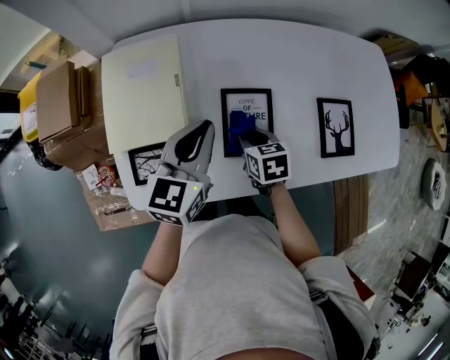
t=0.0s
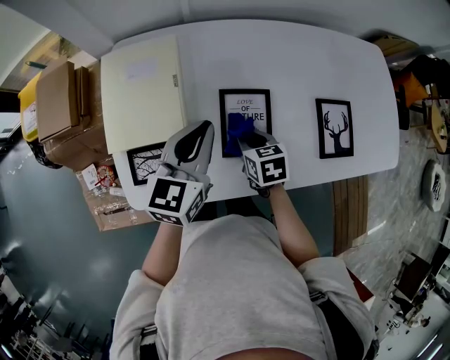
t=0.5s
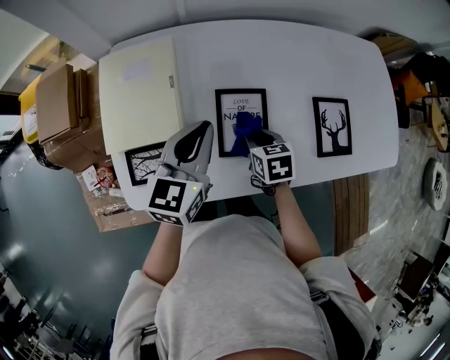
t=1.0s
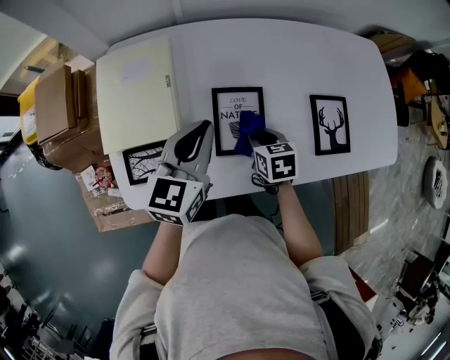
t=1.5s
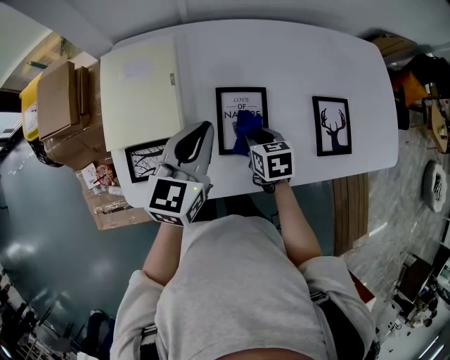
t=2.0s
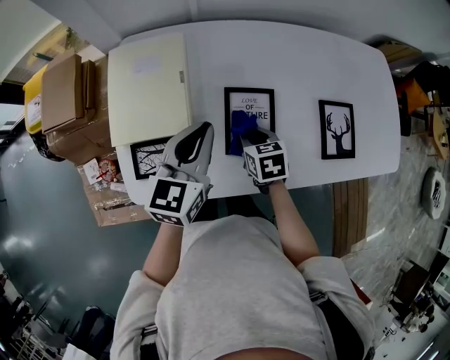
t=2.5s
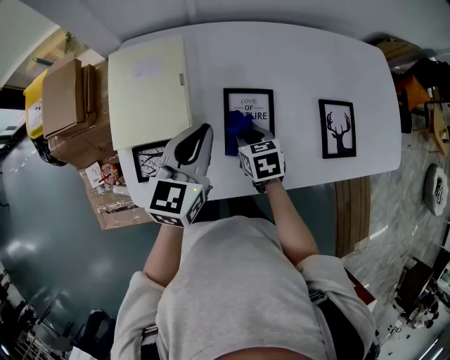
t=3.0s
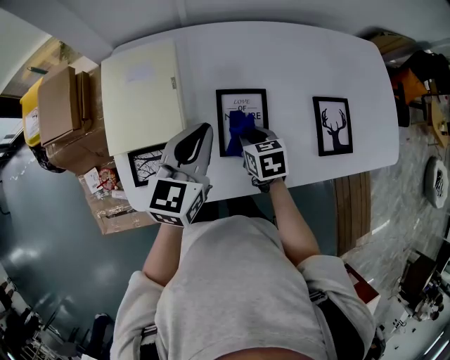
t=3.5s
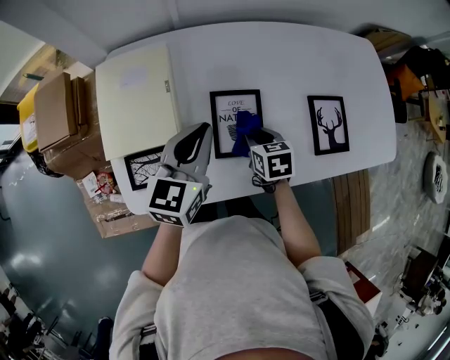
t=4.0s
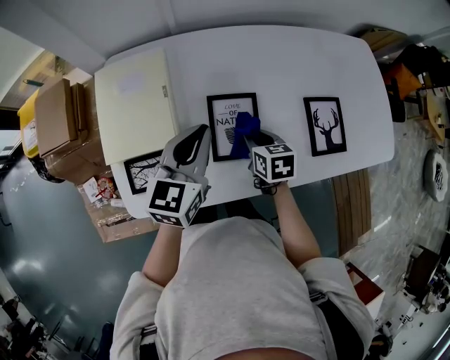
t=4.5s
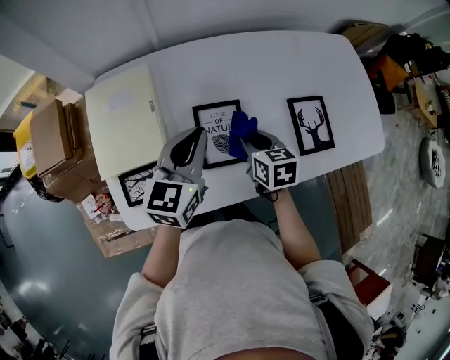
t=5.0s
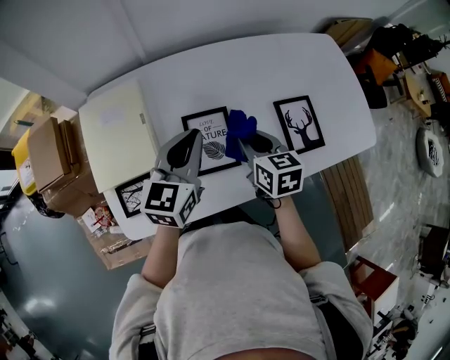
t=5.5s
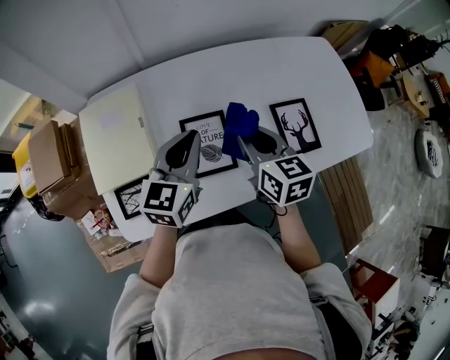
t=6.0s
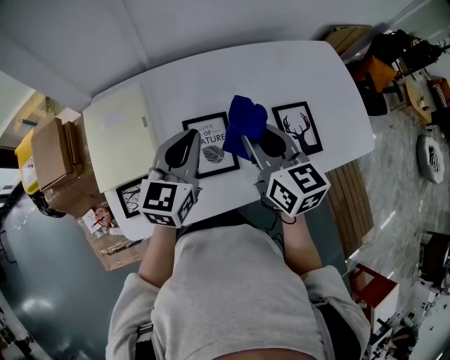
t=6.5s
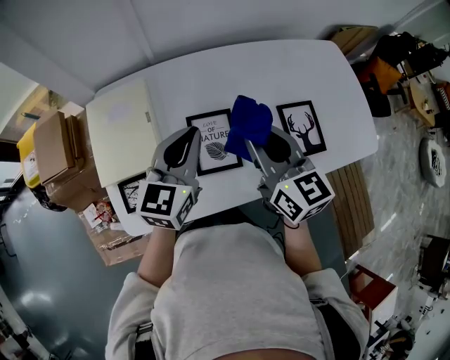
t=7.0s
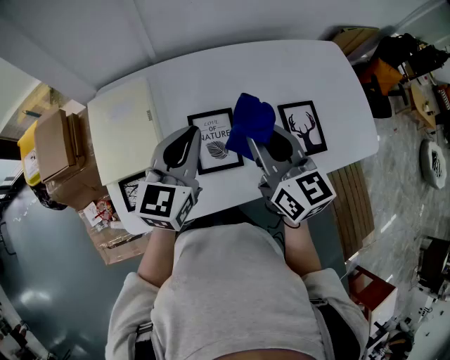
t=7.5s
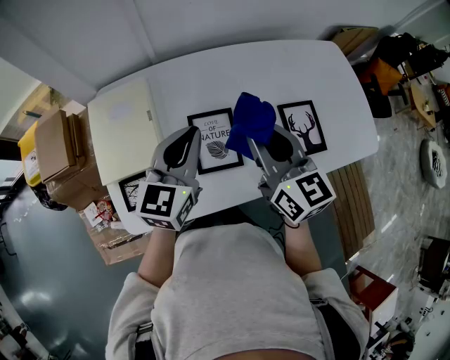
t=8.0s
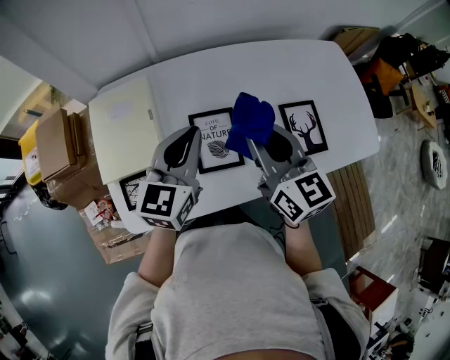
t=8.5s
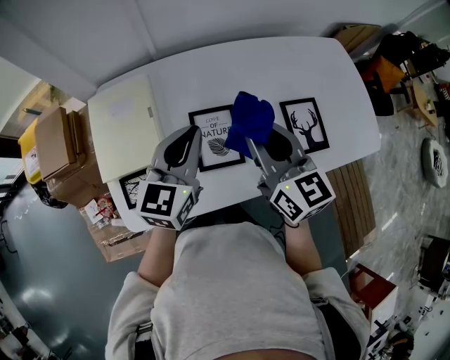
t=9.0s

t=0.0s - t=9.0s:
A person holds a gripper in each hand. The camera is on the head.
t=0.0s - t=4.5s: The grippers move only a little.
t=4.5s - t=7.0s: The right gripper shifts approximately 25 cm upward, and tips its fingers upward by about 40 degrees. Meanwhile the left gripper goes some 5 cm upward.
t=7.0s - t=9.0s: The two grippers keep their place.

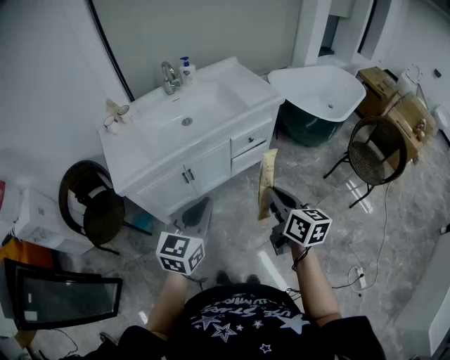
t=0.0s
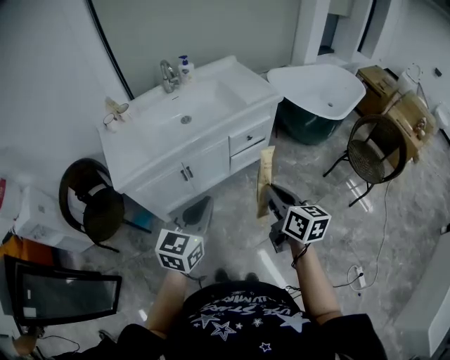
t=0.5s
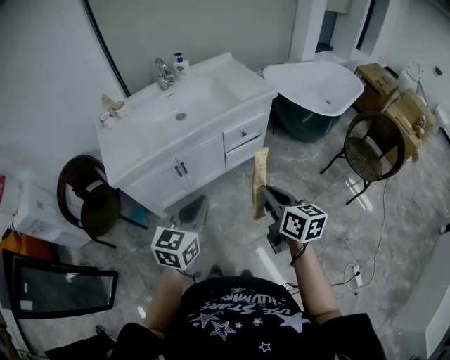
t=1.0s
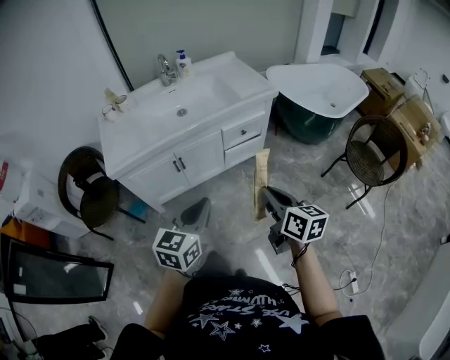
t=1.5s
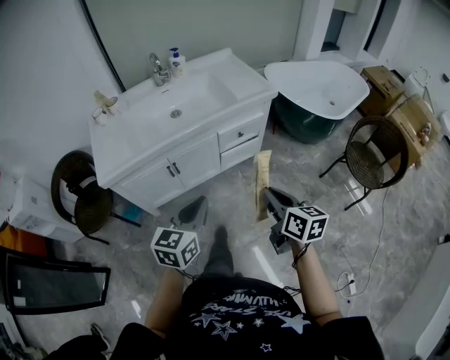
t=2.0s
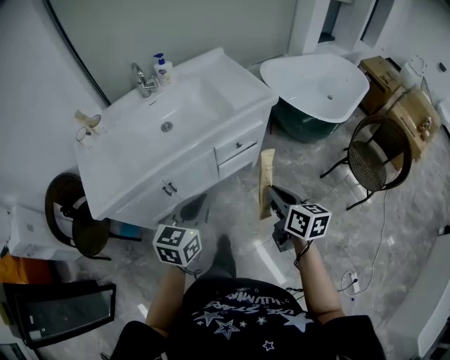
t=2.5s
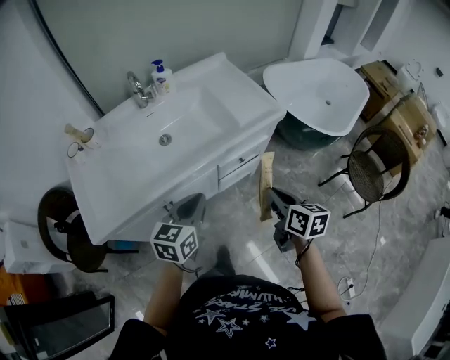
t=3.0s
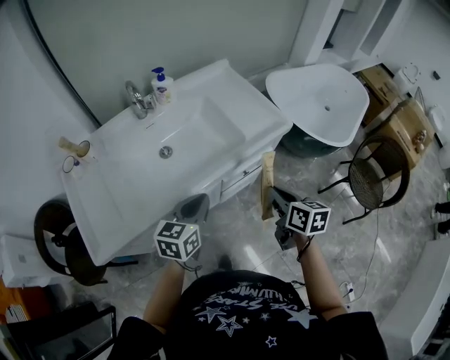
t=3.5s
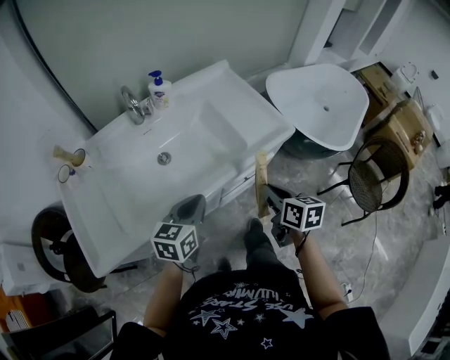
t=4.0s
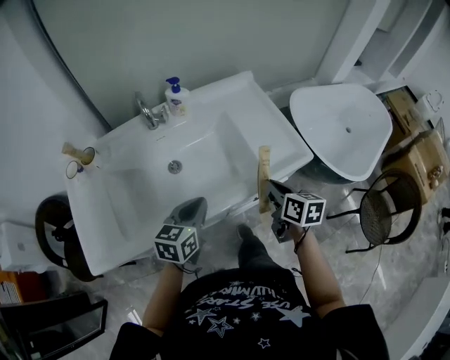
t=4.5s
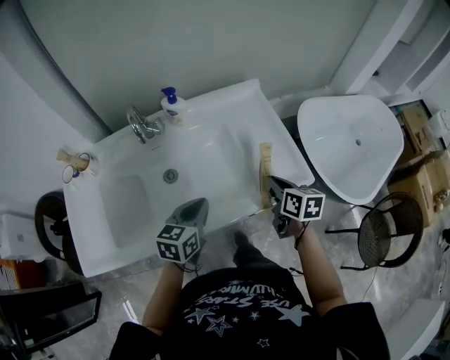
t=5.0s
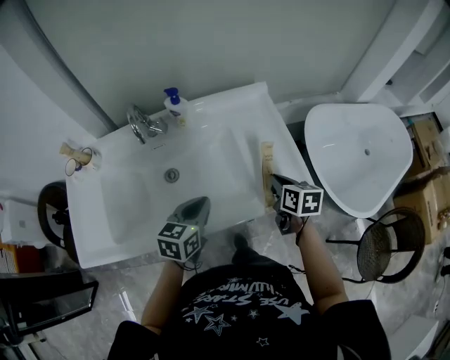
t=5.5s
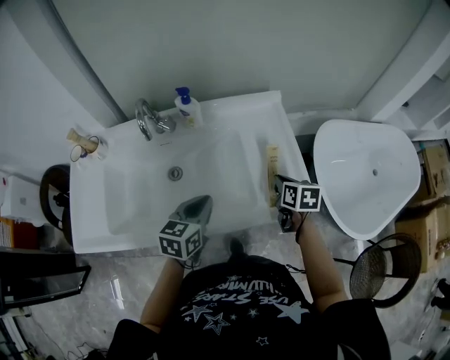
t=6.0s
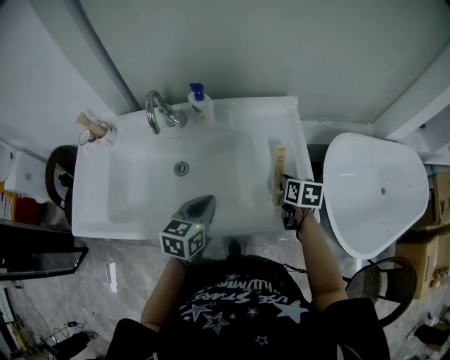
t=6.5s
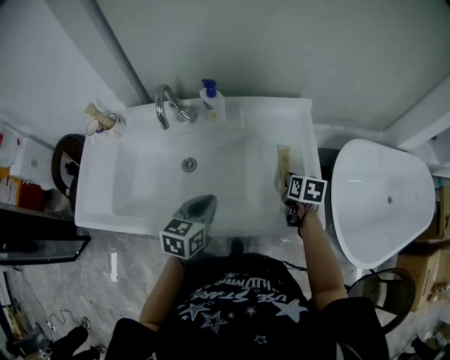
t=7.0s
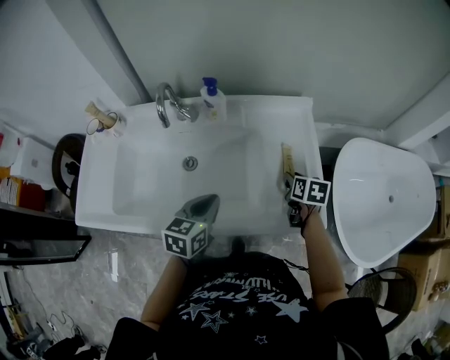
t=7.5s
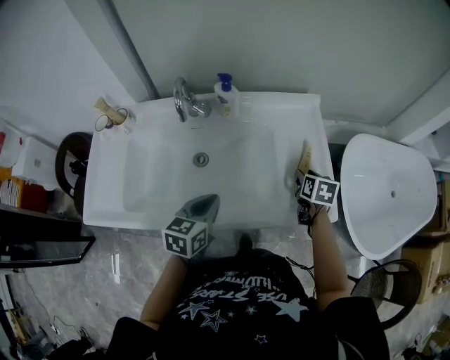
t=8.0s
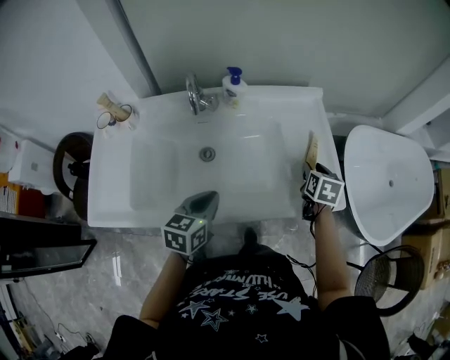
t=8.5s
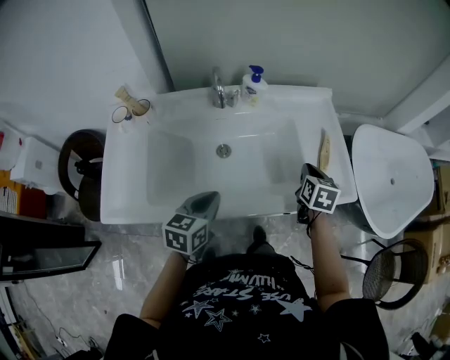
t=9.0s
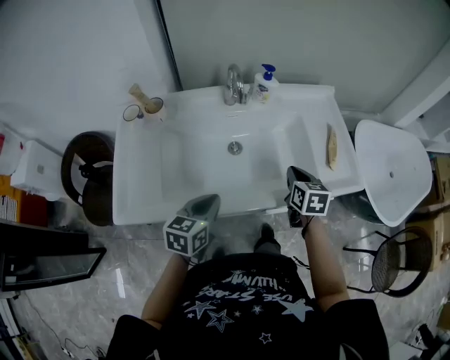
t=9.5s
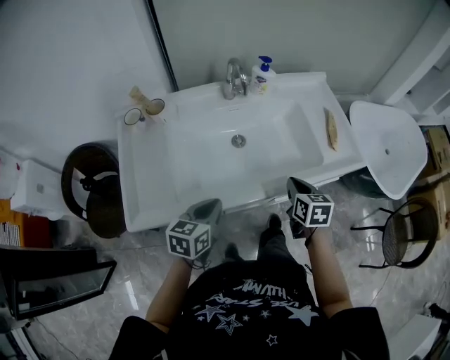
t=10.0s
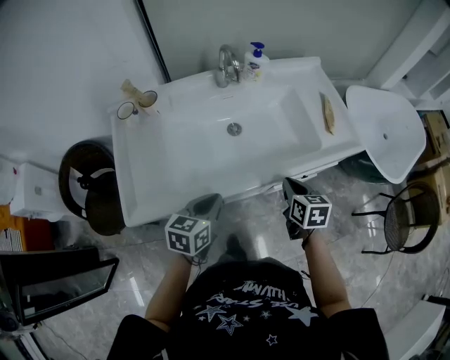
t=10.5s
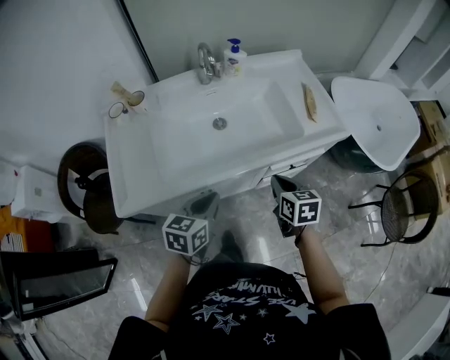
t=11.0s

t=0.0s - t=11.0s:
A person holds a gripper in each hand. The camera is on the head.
t=0.0s - t=2.0s: The left gripper heads to the right and downward, covering roughly 10 cm. The right gripper shifts some 5 cm to the right.
t=2.0s - t=3.5s: The two grippers go roughly 30 cm forward.
t=3.5s - t=5.5s: The left gripper moves forward, approximately 20 cm. The right gripper travels forward by about 30 cm.
t=5.5s - t=7.5s: The right gripper is displaced forward and downward by roughly 10 cm, and opens.
t=7.5s - t=9.0s: The right gripper shifts about 15 cm backward, to the left and upward, and closes up. Meanwhile the left gripper goes about 15 cm to the left and backward.
t=9.0s - t=11.0s: The left gripper is displaced backward by approximately 15 cm, while the right gripper shifts roughly 25 cm backward.

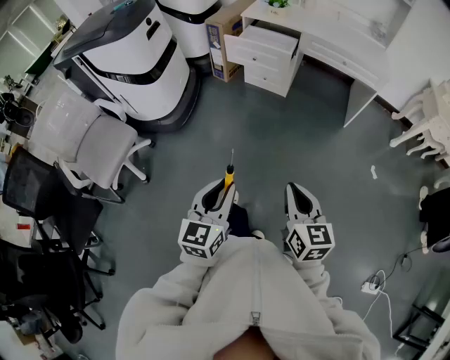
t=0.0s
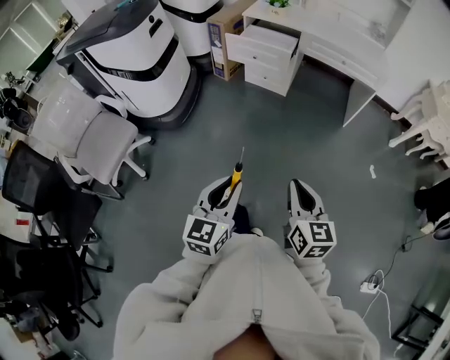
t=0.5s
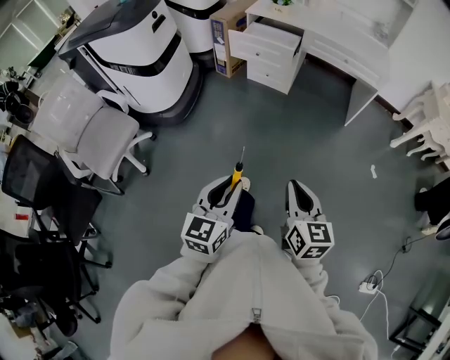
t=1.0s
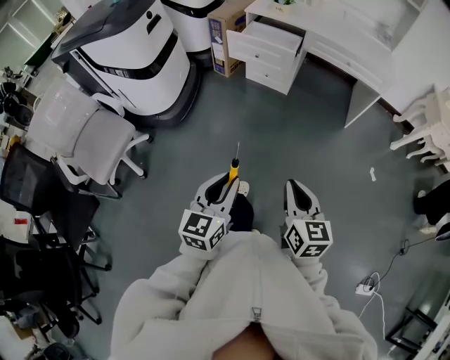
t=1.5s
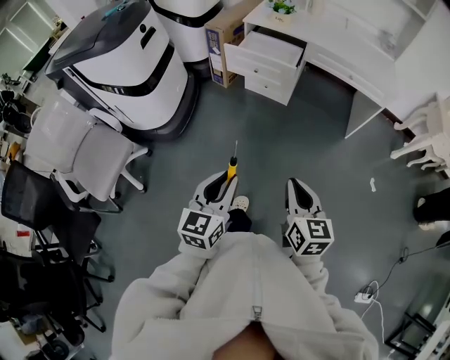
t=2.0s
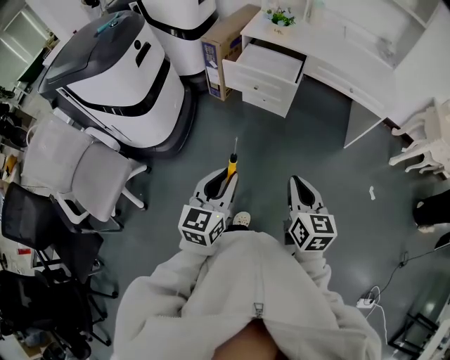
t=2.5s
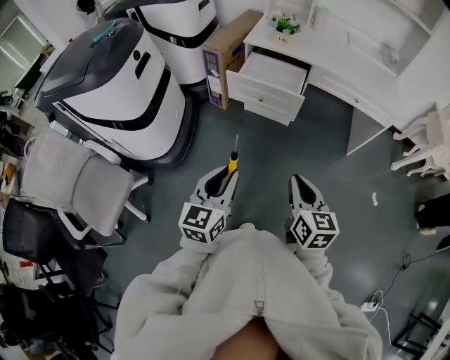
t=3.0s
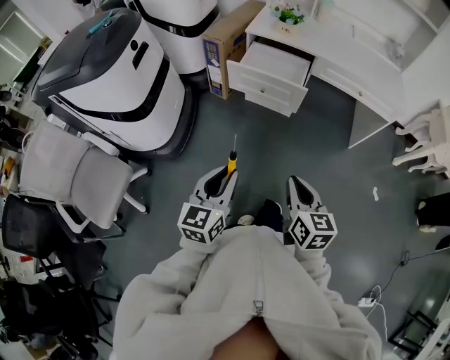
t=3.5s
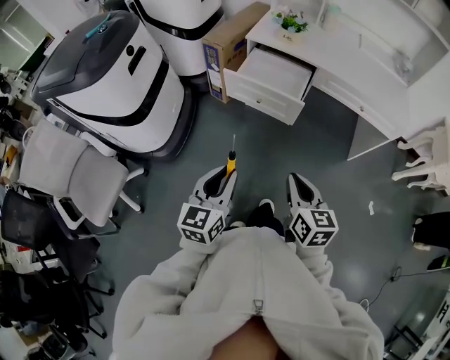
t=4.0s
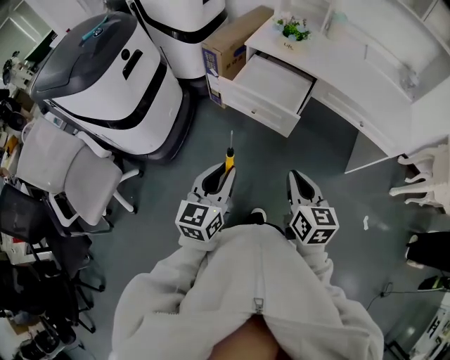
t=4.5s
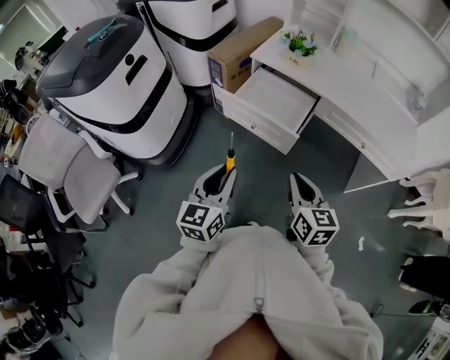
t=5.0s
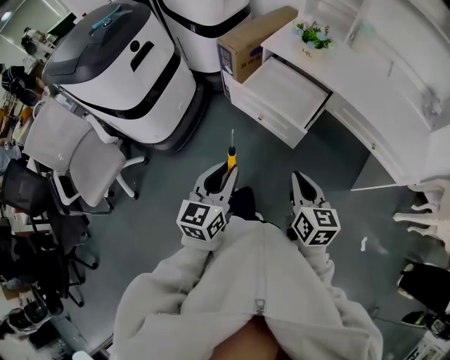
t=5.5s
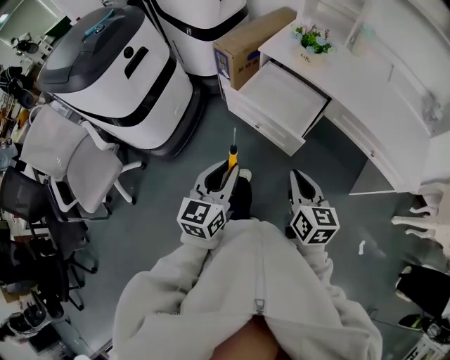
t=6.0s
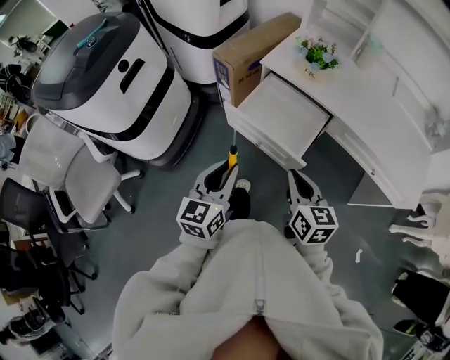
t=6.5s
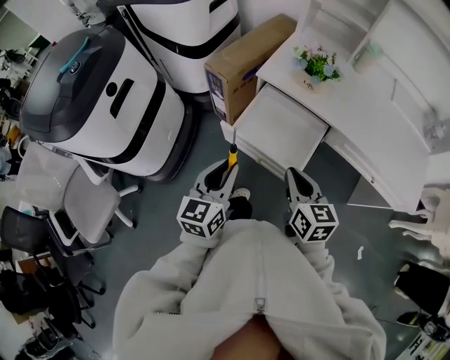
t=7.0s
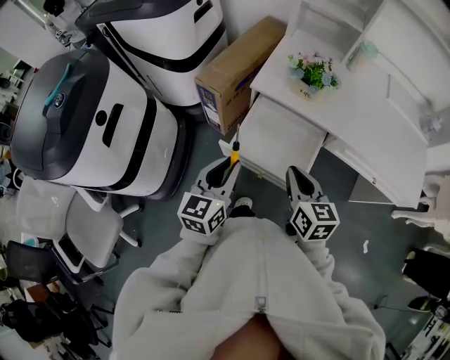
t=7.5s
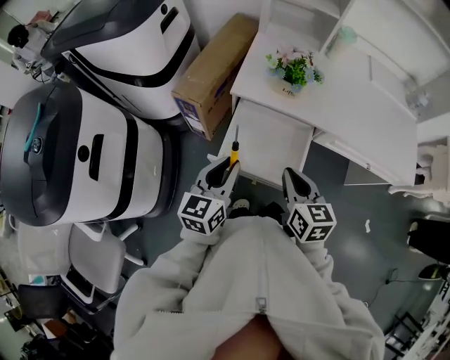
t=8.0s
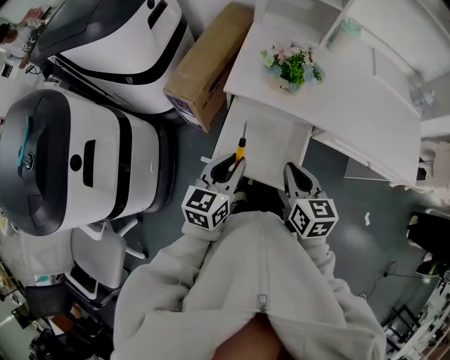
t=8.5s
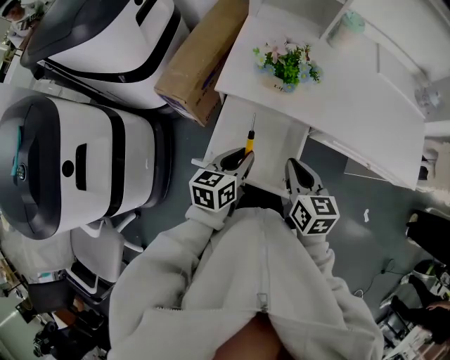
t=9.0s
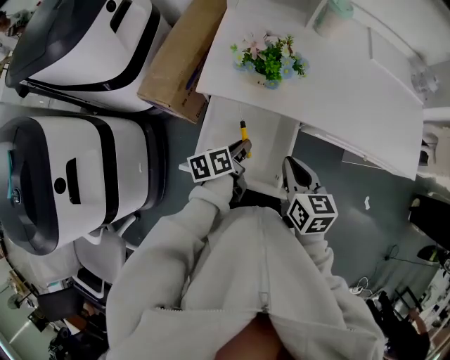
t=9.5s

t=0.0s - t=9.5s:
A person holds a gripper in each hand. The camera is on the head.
t=0.0s - t=2.0s: The grippers both shift forward by about 15 cm.
t=2.0s - t=4.0s: The two grippers go about 25 cm forward.
t=4.0s - t=5.5s: The two grippers go some 15 cm forward and to the right.
t=5.5s - t=7.5s: Both grippers travel together forward, some 30 cm.
t=7.5s - t=9.5s: The right gripper heads forward, to the right and downward, covering about 15 cm. Meanwhile the left gripper moves downward, forward and to the right, approximately 25 cm, and changes its angle by approximately 50 degrees.
